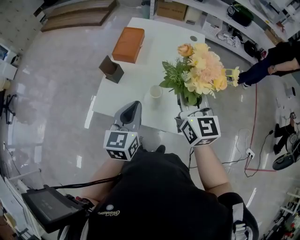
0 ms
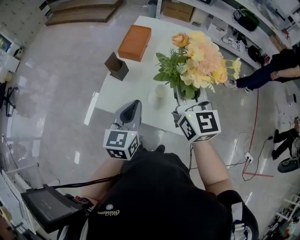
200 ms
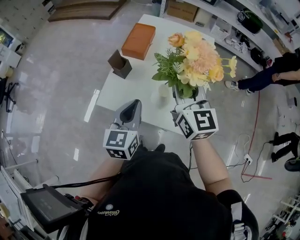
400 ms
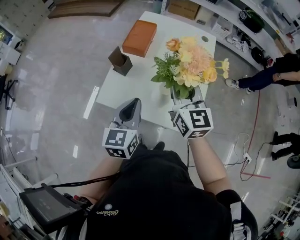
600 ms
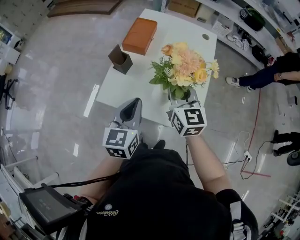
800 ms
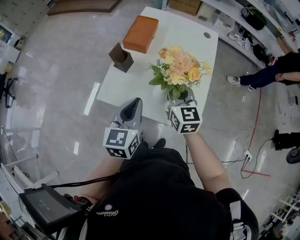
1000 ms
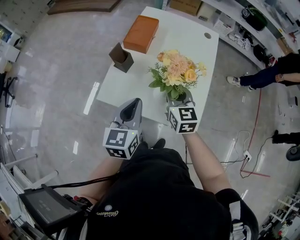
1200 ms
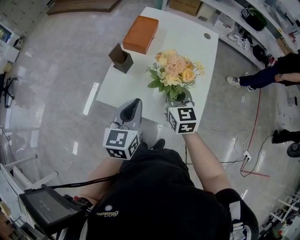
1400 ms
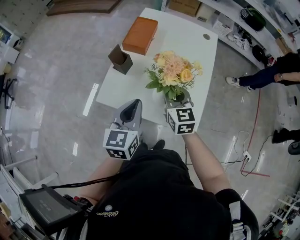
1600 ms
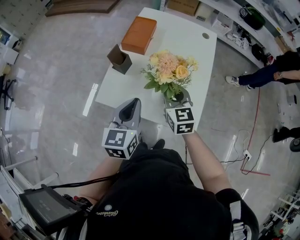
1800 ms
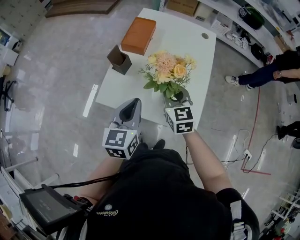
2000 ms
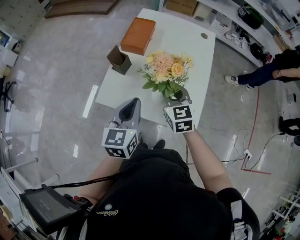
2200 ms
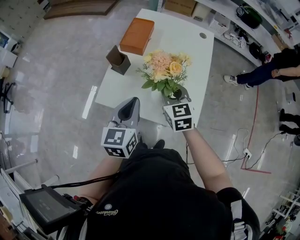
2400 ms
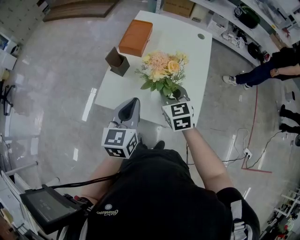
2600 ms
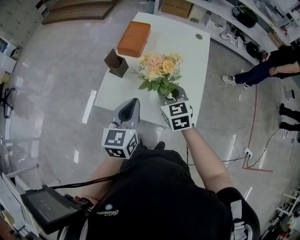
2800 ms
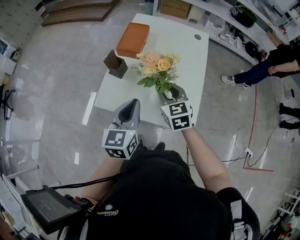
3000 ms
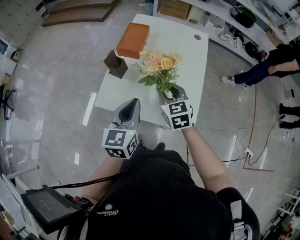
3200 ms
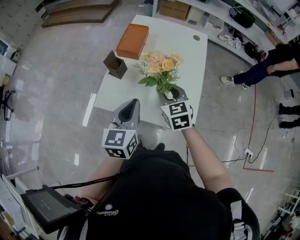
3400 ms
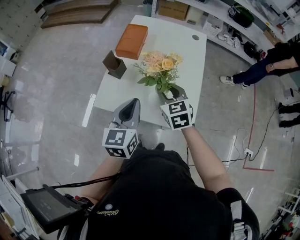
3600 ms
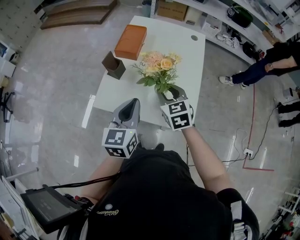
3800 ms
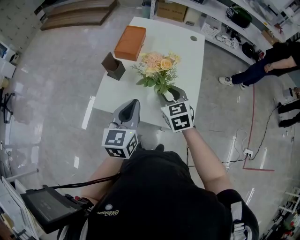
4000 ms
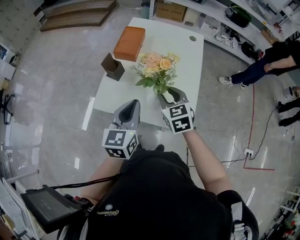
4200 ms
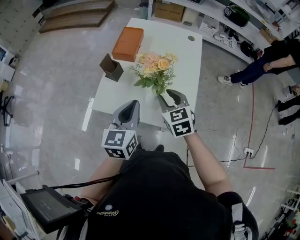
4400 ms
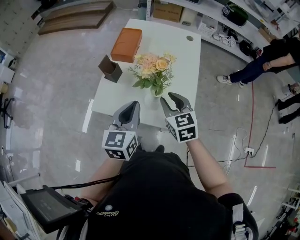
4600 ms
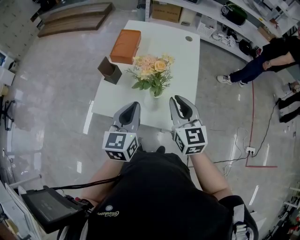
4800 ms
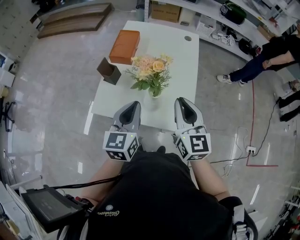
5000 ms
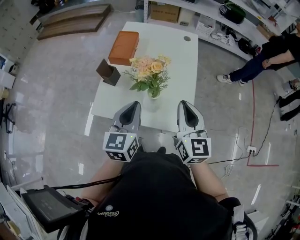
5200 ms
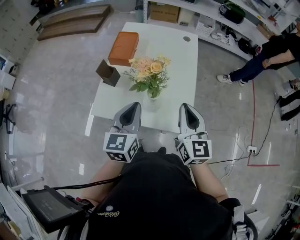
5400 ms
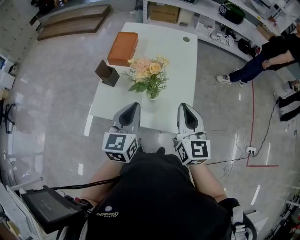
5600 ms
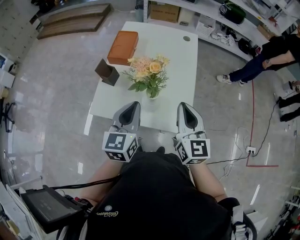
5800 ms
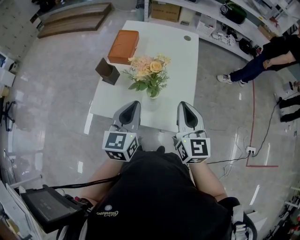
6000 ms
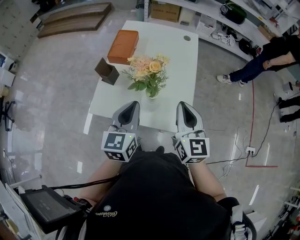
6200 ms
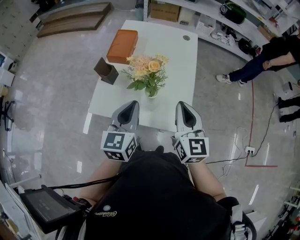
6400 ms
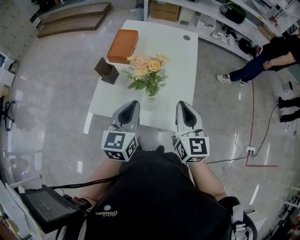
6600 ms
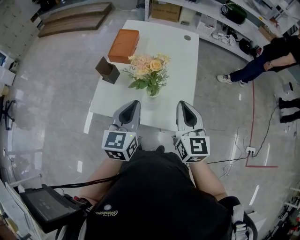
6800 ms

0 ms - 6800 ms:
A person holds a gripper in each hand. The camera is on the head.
0 ms - 1400 ms: The right gripper shifts about 15 cm downward and to the left; the left gripper ends up approximately 5 cm from where it was.
1400 ms - 4000 ms: The grippers make only small movements.
4000 ms - 5400 ms: The right gripper moves upward, to the right and backward, some 15 cm, swivels some 30 degrees, and closes up.
5400 ms - 6800 ms: Neither gripper changes place.

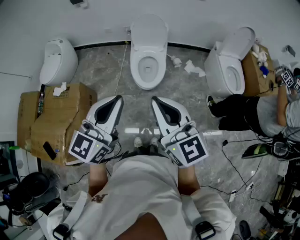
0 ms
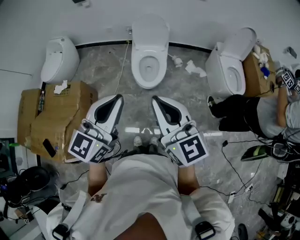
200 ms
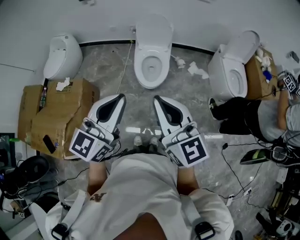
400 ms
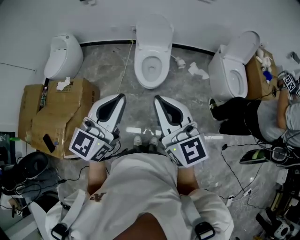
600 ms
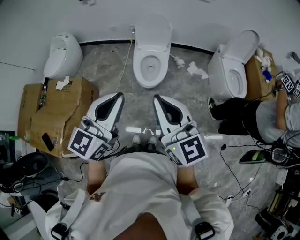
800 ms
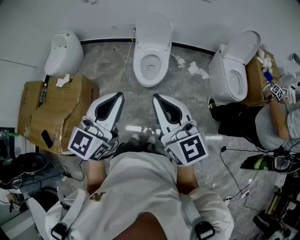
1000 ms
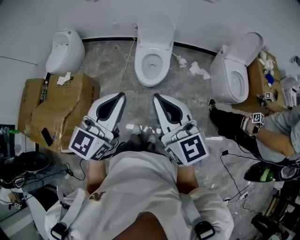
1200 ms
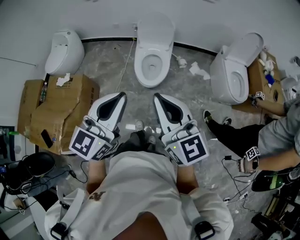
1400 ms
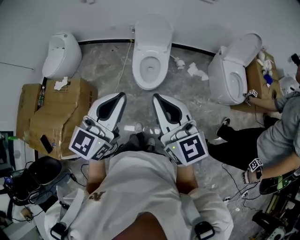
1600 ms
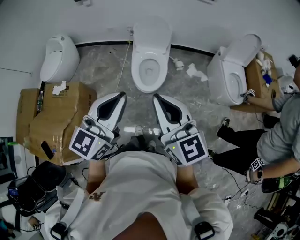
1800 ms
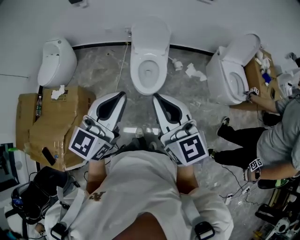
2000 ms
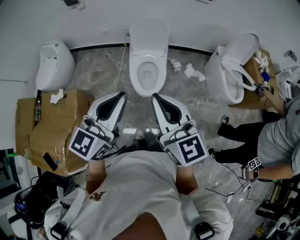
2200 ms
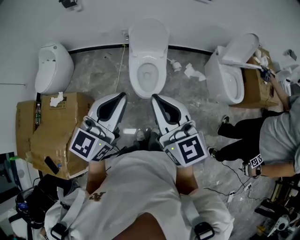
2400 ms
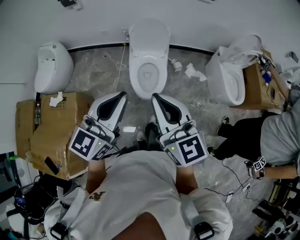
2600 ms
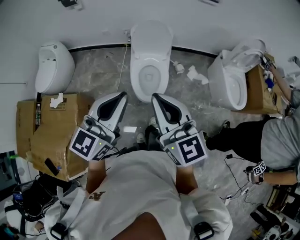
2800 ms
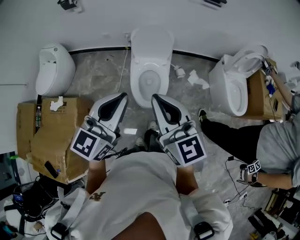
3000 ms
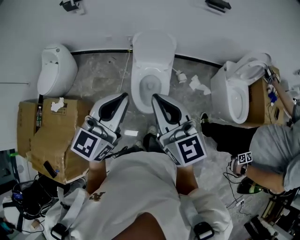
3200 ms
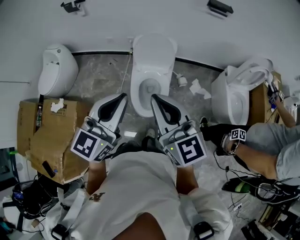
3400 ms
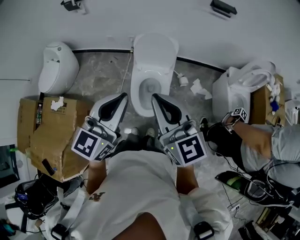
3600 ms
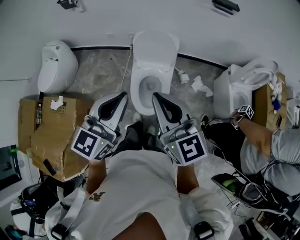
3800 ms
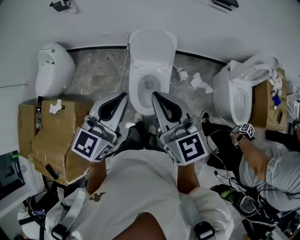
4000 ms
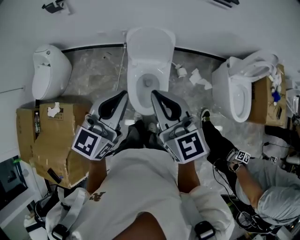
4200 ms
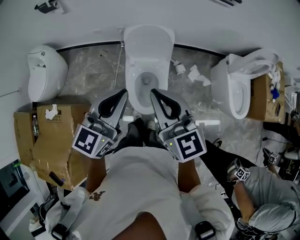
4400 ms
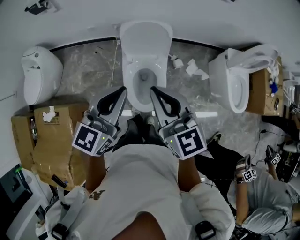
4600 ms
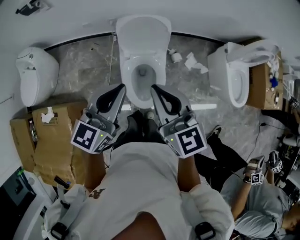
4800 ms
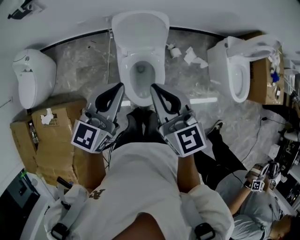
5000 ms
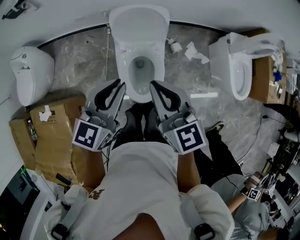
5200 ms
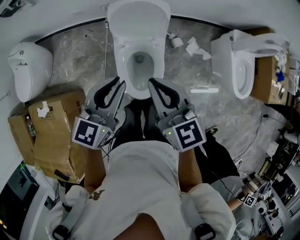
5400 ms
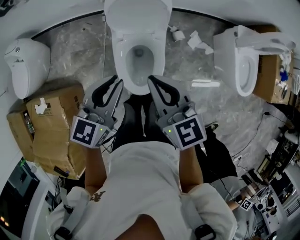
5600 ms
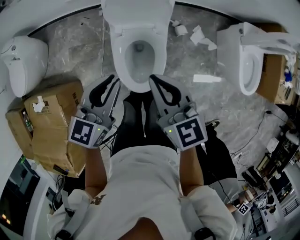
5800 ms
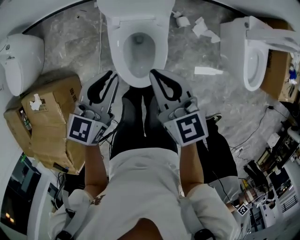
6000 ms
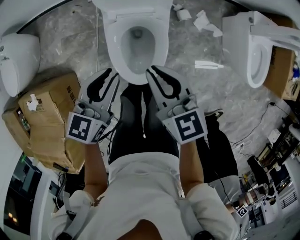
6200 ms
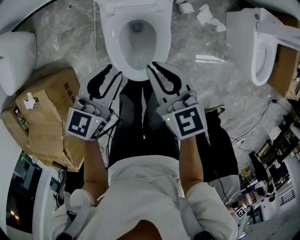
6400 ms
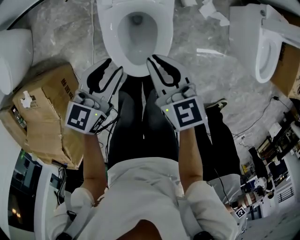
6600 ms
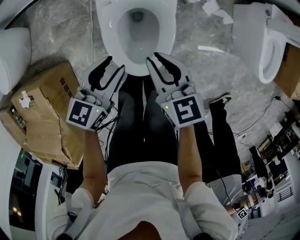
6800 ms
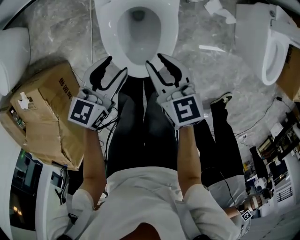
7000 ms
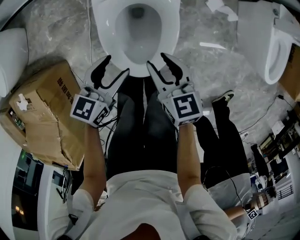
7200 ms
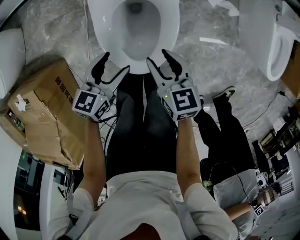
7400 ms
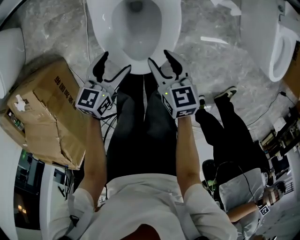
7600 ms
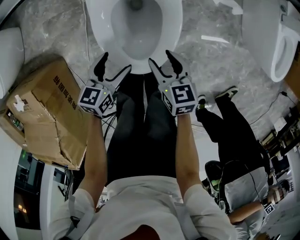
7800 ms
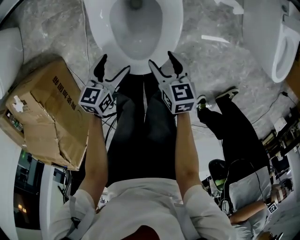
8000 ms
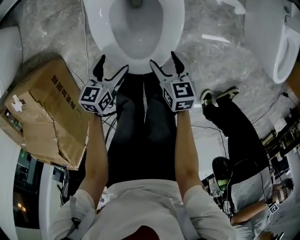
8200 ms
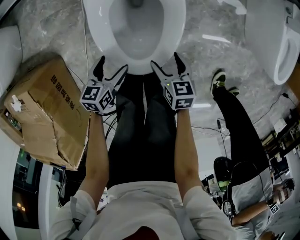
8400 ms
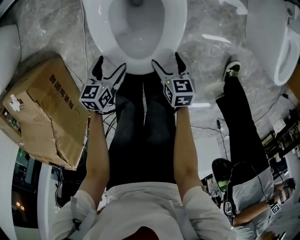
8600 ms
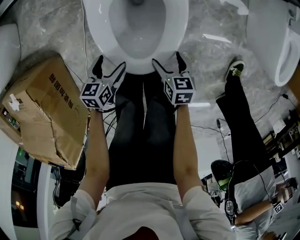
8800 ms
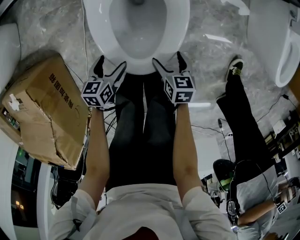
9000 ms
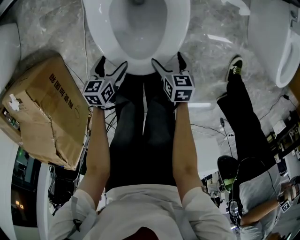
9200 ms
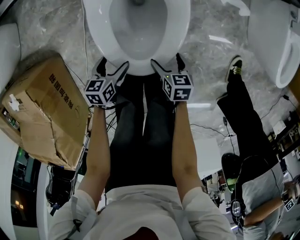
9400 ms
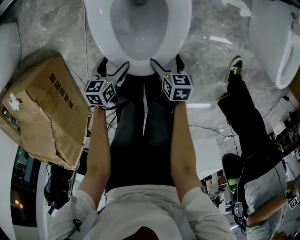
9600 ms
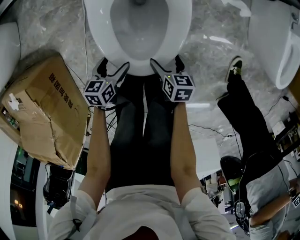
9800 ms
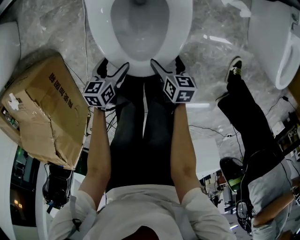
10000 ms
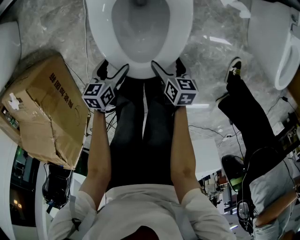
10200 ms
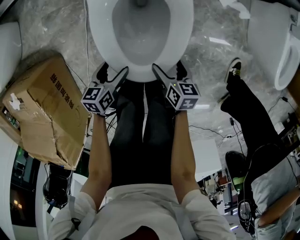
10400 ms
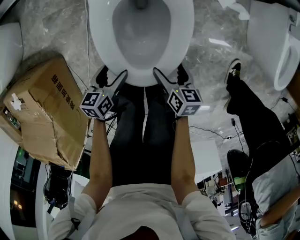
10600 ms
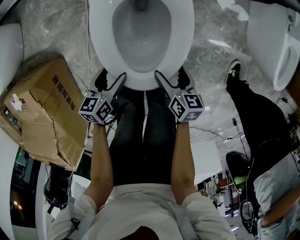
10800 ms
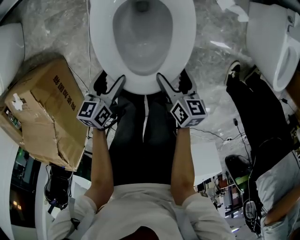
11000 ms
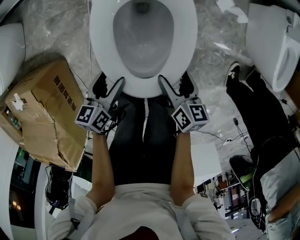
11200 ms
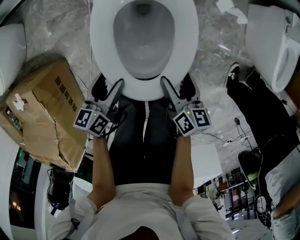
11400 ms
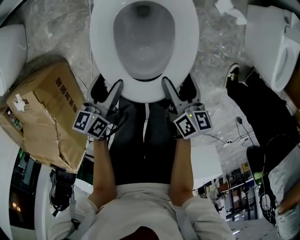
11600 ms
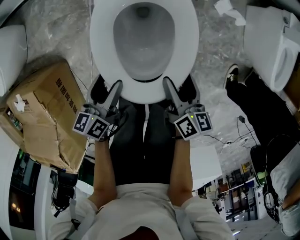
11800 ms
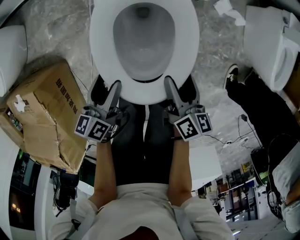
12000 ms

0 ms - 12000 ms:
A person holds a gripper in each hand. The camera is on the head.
0 ms - 1600 ms: The grippers make only small movements.
1600 ms - 3000 ms: The grippers both shift forward by approximately 25 cm.
3000 ms - 4400 ms: The two grippers go roughly 20 cm forward.
4400 ms - 6000 ms: The two grippers go approximately 30 cm downward and forward. The right gripper swivels some 20 degrees.
6000 ms - 7600 ms: Both grippers travel together downward, approximately 35 cm. The right gripper swivels approximately 20 degrees, and opens up, while the left gripper changes its angle by approximately 20 degrees, and opens.
7600 ms - 9000 ms: Both grippers move downward and backward, about 15 cm. The right gripper opens up.
9000 ms - 10400 ms: There are only small adjustments of the grippers.
10400 ms - 12000 ms: The grippers both shift upward by approximately 15 cm. The left gripper swivels roughly 30 degrees; the right gripper turns by roughly 30 degrees.

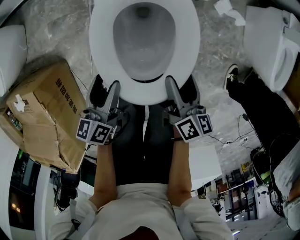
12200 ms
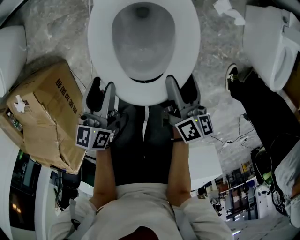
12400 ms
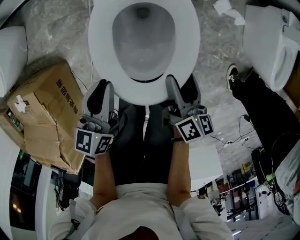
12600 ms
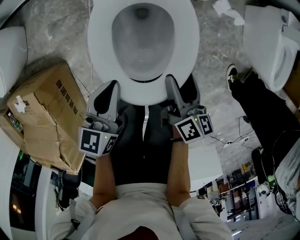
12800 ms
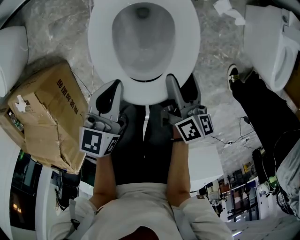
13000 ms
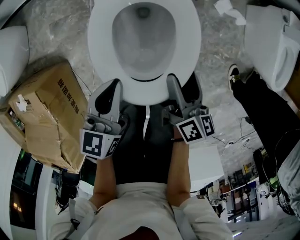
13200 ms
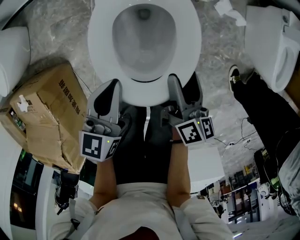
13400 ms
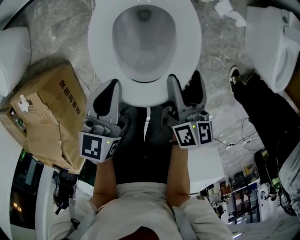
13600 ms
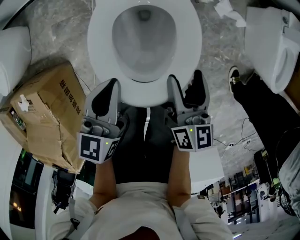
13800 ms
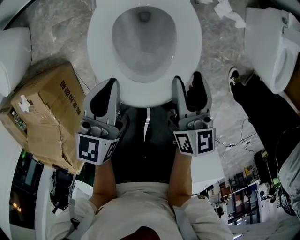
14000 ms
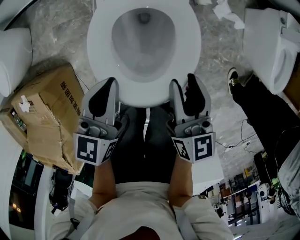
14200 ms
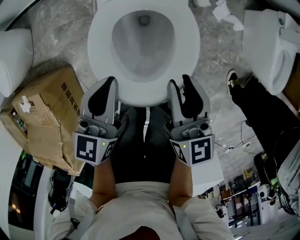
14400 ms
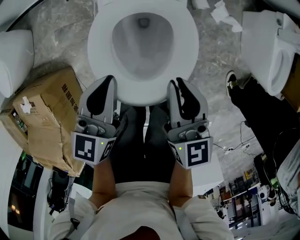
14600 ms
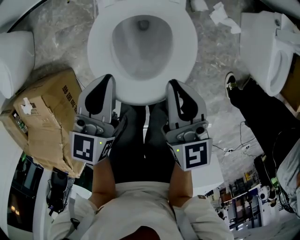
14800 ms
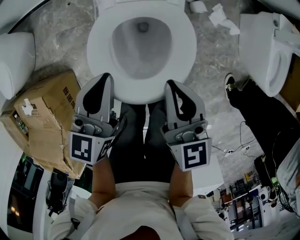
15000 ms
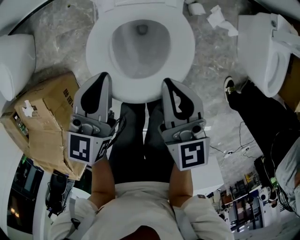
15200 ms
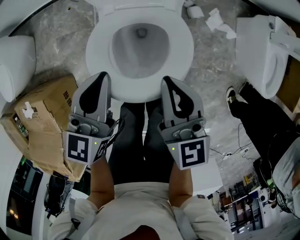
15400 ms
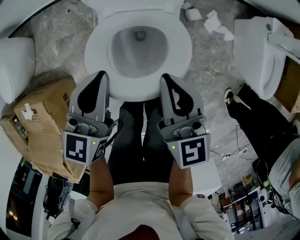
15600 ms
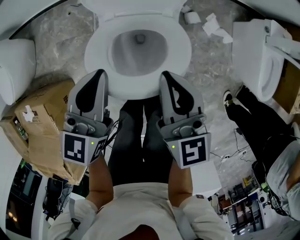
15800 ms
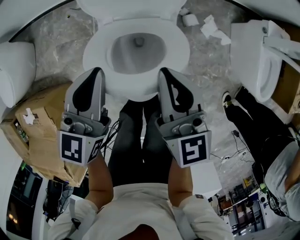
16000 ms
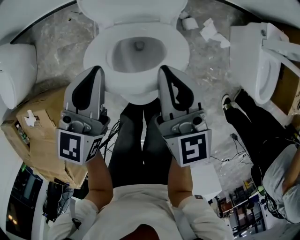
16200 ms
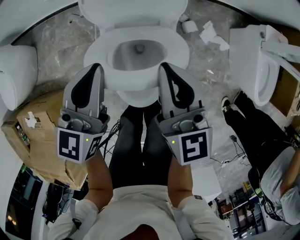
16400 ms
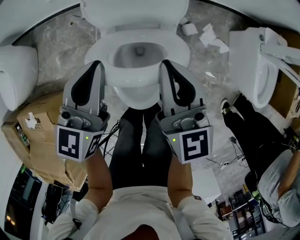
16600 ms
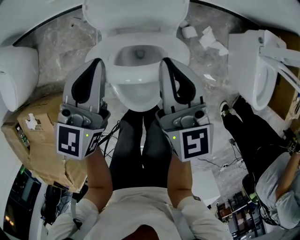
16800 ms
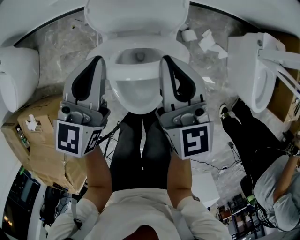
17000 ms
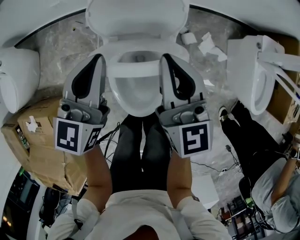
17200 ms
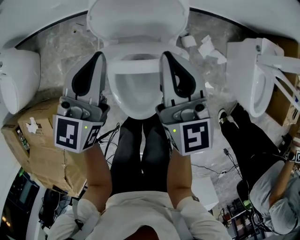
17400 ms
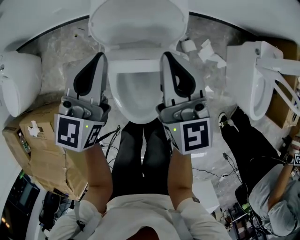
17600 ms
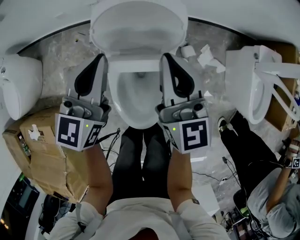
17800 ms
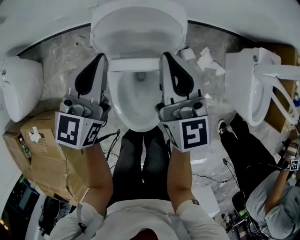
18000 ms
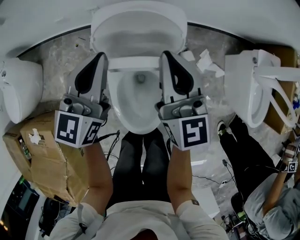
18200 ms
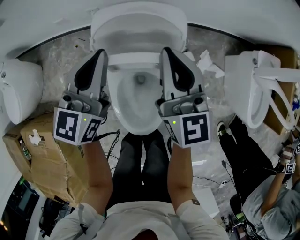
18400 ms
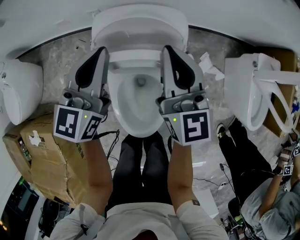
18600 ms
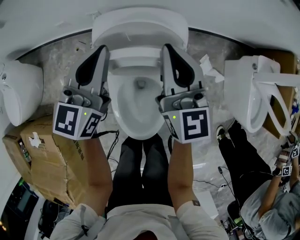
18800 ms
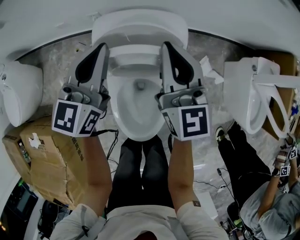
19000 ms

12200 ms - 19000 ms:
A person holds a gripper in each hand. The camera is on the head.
12200 ms - 13600 ms: The right gripper ends up some 5 cm from where it was; the left gripper is displaced upward by some 10 cm, changes its angle by roughly 30 degrees, and closes up.
13600 ms - 15000 ms: The right gripper heads upward and to the left, covering approximately 15 cm, rotates about 40 degrees, and closes its fingers, while the left gripper moves upward and forward, approximately 10 cm.
15000 ms - 16200 ms: The two grippers go roughly 10 cm forward and upward.
16200 ms - 17600 ms: Both grippers move forward, some 10 cm.
17600 ms - 19000 ms: Both grippers travel together forward, about 10 cm.
